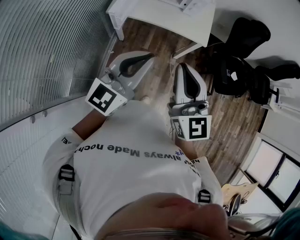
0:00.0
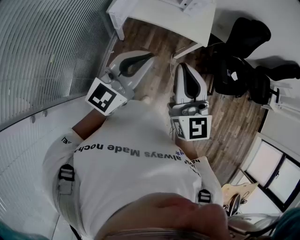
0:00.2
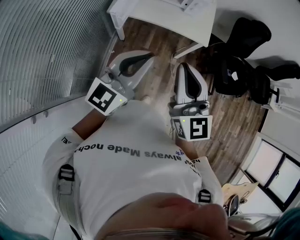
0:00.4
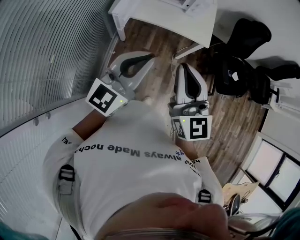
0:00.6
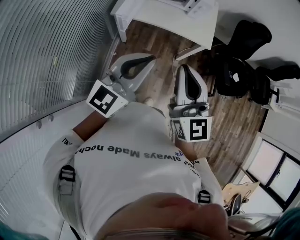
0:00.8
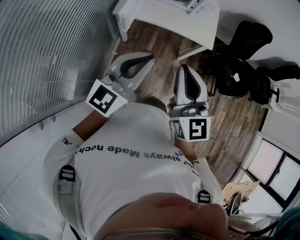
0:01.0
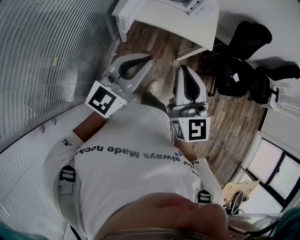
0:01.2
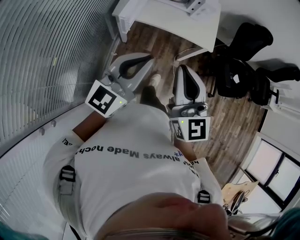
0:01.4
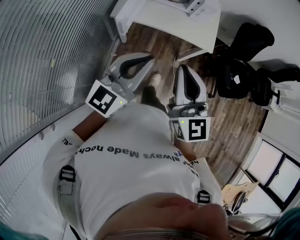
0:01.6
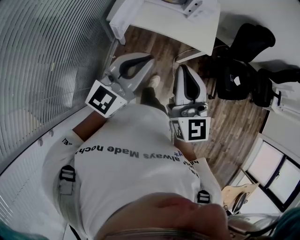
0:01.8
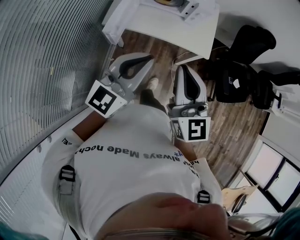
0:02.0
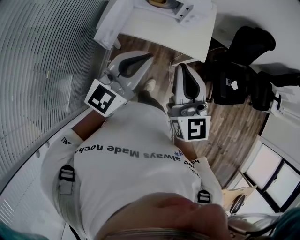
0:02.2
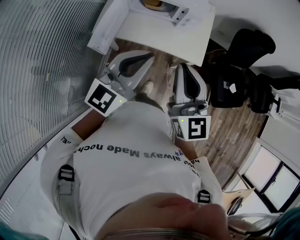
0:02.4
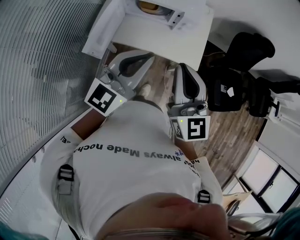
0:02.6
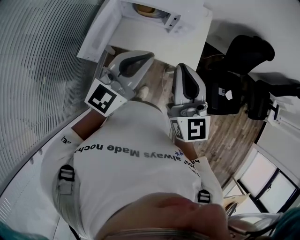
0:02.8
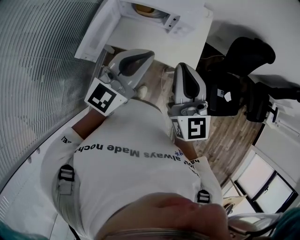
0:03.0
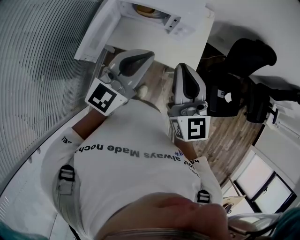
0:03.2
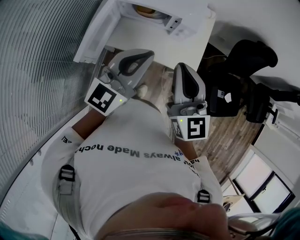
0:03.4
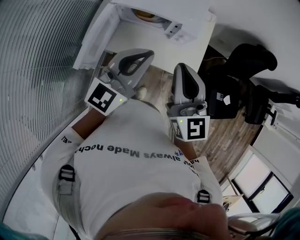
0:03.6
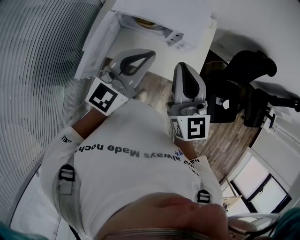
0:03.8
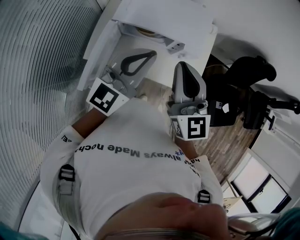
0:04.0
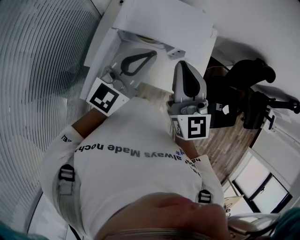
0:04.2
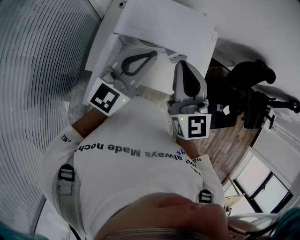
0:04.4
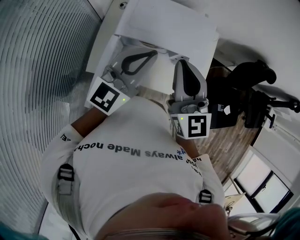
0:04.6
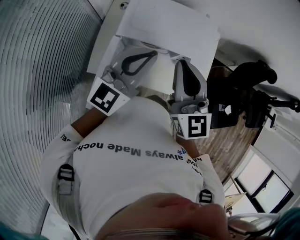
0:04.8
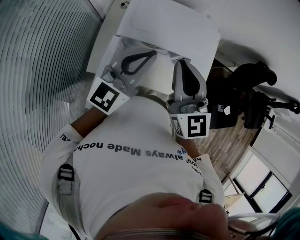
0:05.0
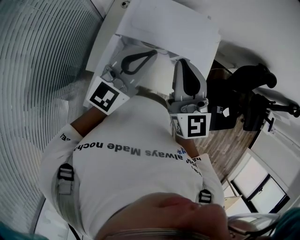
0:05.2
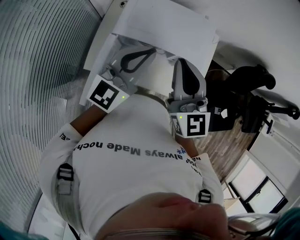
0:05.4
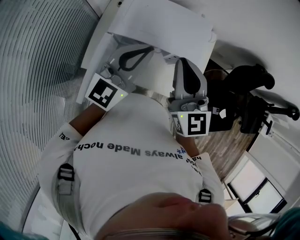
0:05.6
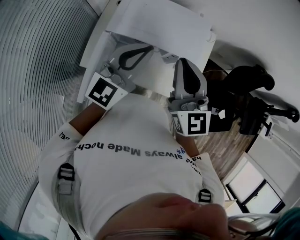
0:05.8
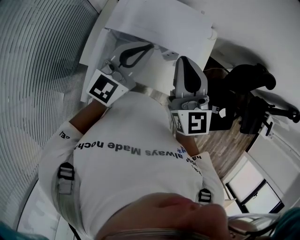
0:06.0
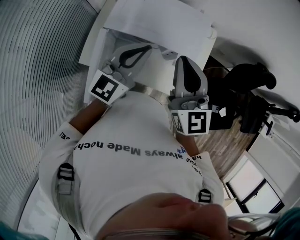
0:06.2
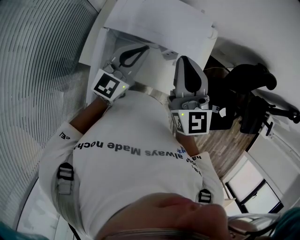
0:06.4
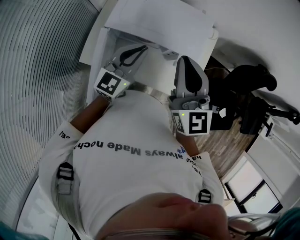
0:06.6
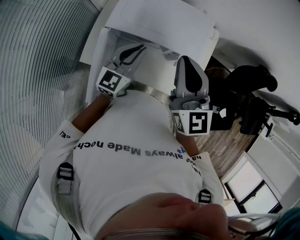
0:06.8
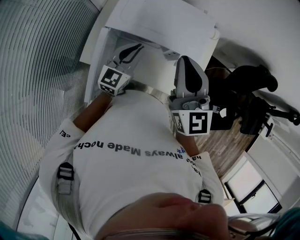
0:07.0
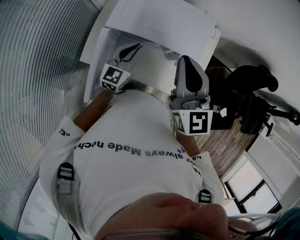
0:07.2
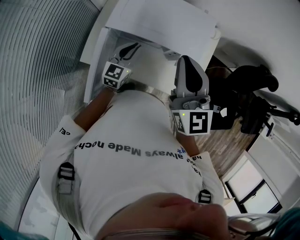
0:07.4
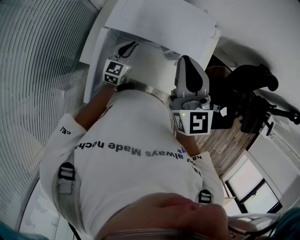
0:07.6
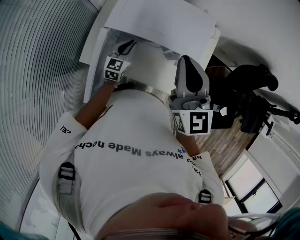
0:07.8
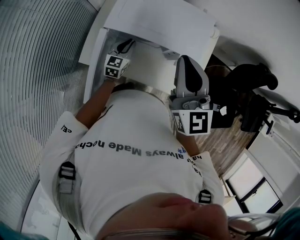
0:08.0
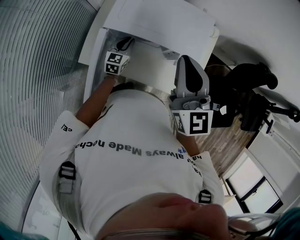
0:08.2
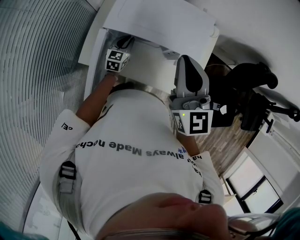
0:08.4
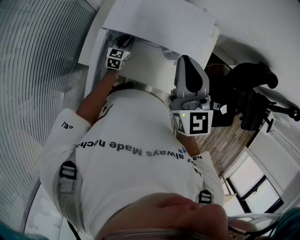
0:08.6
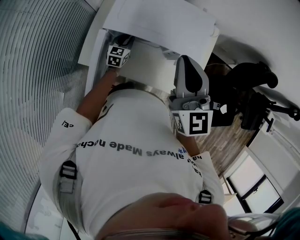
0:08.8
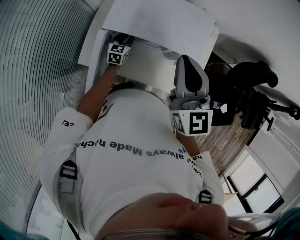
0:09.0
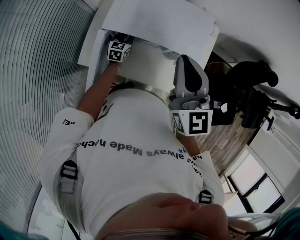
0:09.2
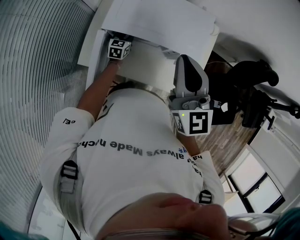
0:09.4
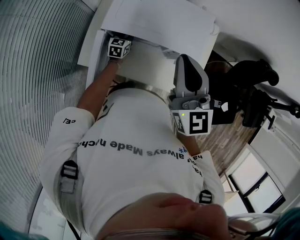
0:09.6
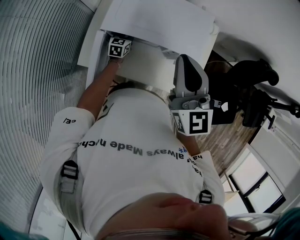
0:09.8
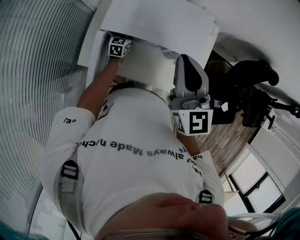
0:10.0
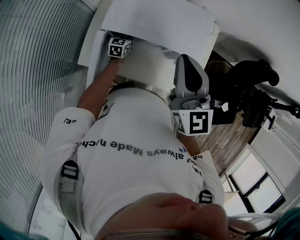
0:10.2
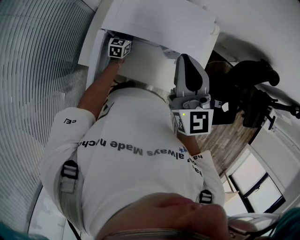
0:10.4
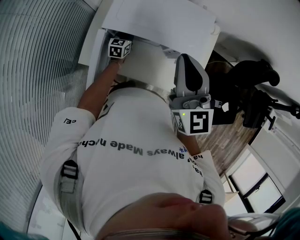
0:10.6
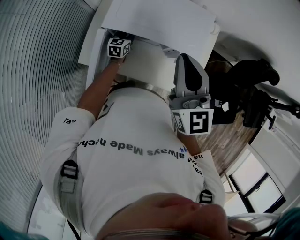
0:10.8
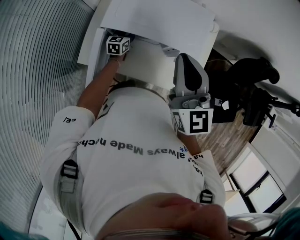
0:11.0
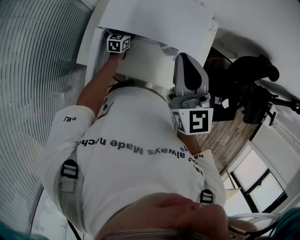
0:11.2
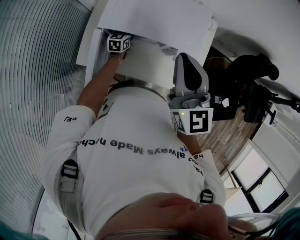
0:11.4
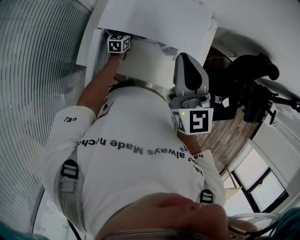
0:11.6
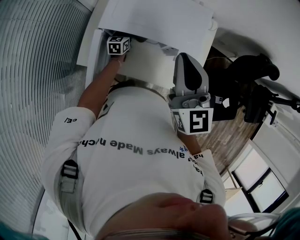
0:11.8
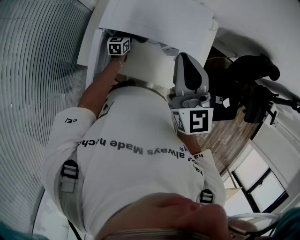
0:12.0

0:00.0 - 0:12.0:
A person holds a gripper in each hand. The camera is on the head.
0:00.0 - 0:01.6: The two grippers go roughly 5 cm to the left.
0:01.6 - 0:03.0: Both grippers move forward and to the right, approximately 30 cm.
0:03.0 - 0:04.4: The two grippers go some 25 cm forward and to the left.
0:04.4 - 0:06.0: The grippers both shift to the right by approximately 5 cm.
0:06.0 - 0:07.6: The left gripper moves downward, roughly 25 cm, and changes its angle by approximately 20 degrees.
0:07.6 - 0:09.0: The left gripper moves downward and forward, some 15 cm.
0:09.0 - 0:10.4: The grippers move only a little.
0:10.4 - 0:12.0: The left gripper opens, then closes again.

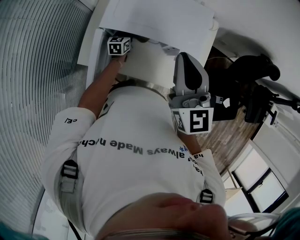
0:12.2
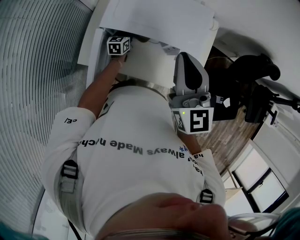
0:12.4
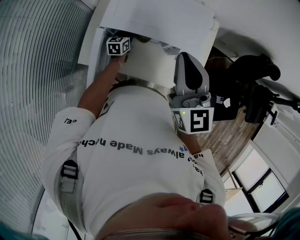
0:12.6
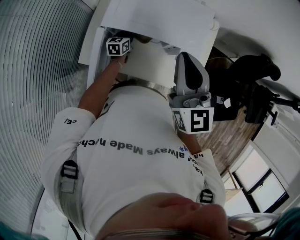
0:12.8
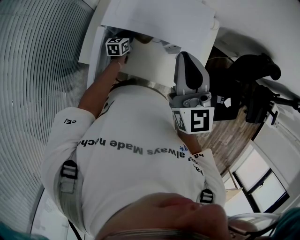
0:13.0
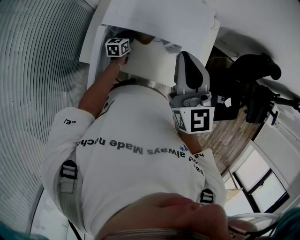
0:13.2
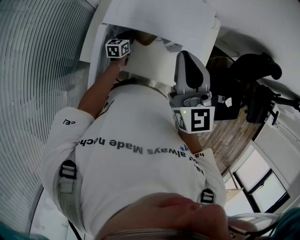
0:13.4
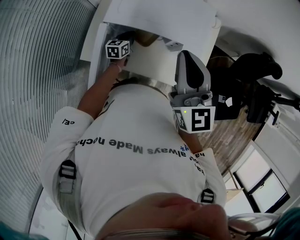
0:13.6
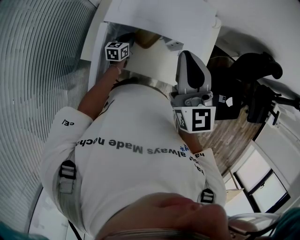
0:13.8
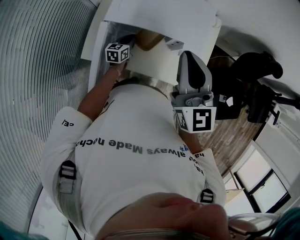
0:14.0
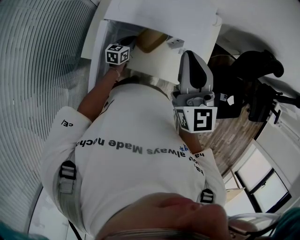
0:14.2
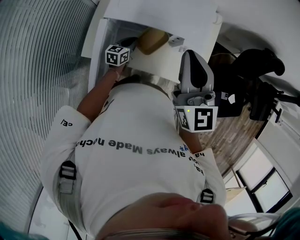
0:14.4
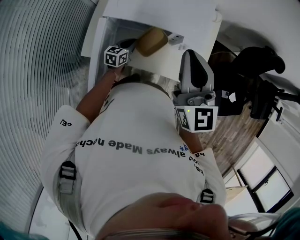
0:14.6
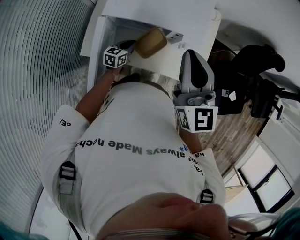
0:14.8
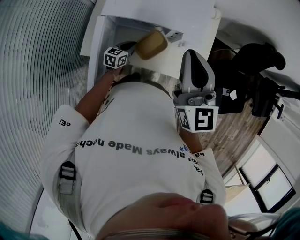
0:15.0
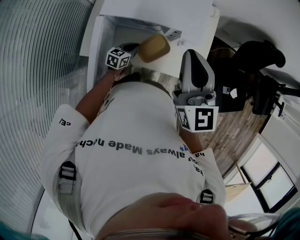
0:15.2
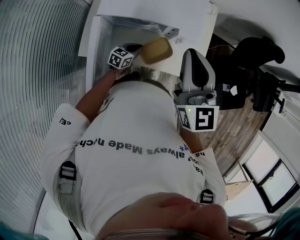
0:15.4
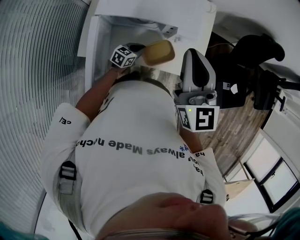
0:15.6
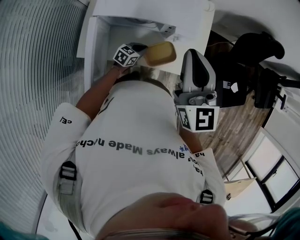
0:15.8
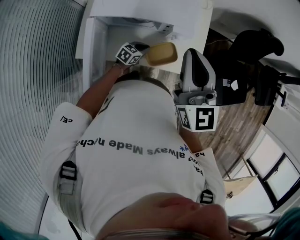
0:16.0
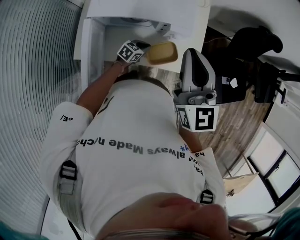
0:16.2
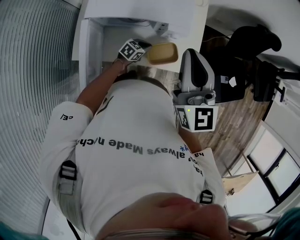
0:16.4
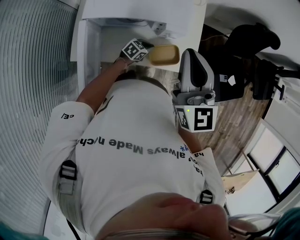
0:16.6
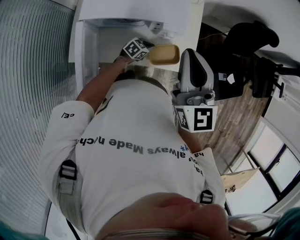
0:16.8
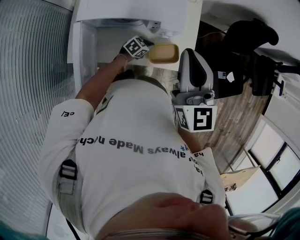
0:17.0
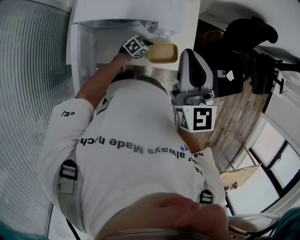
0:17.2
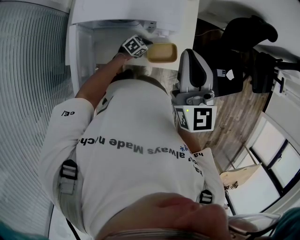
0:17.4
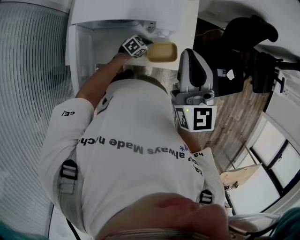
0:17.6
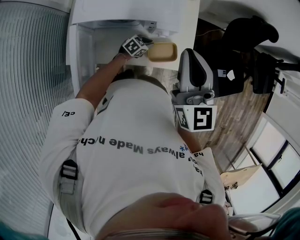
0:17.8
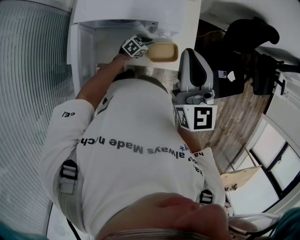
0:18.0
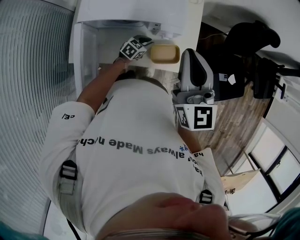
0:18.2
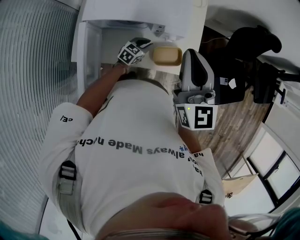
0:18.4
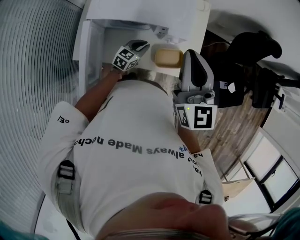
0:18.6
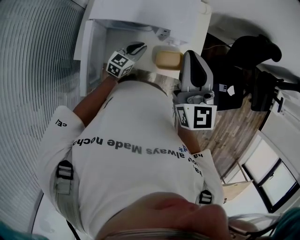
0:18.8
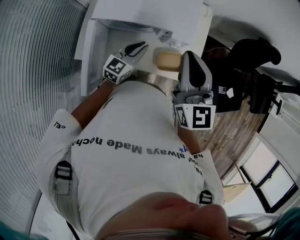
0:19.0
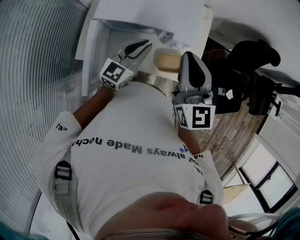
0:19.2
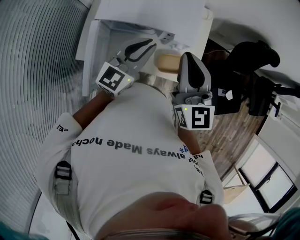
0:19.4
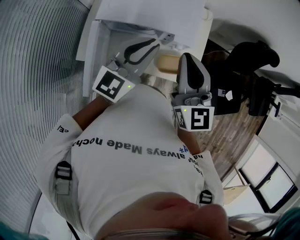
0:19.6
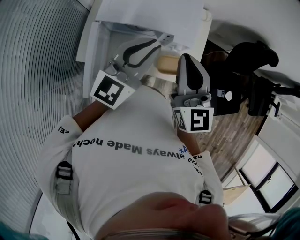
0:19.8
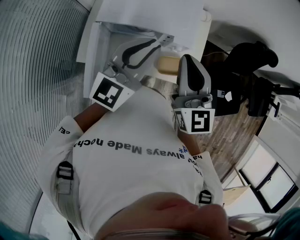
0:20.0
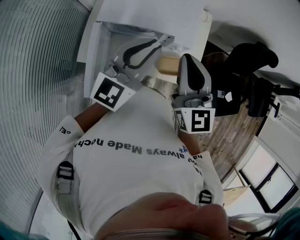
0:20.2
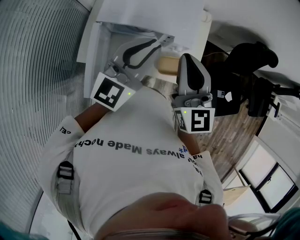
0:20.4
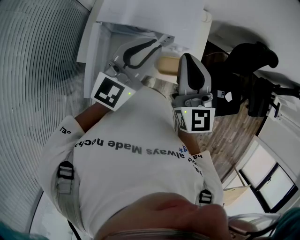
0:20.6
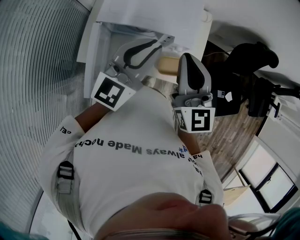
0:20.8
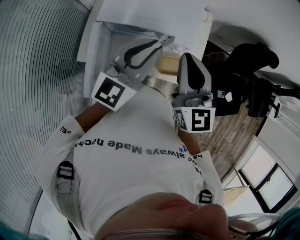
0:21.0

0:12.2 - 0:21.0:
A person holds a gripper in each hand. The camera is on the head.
0:12.2 - 0:13.6: The left gripper shifts some 5 cm backward.
0:13.6 - 0:15.2: The right gripper changes place by approximately 5 cm. Meanwhile the left gripper travels backward and to the right by approximately 15 cm, and swivels some 20 degrees.
0:15.2 - 0:16.6: The right gripper moves approximately 5 cm. Meanwhile the left gripper travels to the right by about 15 cm, and turns by about 30 degrees.
0:16.6 - 0:18.0: The grippers move only a little.
0:18.0 - 0:19.6: The left gripper heads upward, covering roughly 40 cm, and tilts its fingers about 40 degrees upward. Meanwhile the right gripper goes approximately 5 cm to the left.
0:19.6 - 0:21.0: The grippers stay close to where they were, moving slightly.

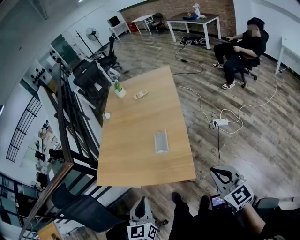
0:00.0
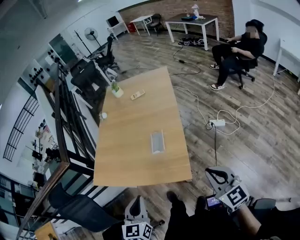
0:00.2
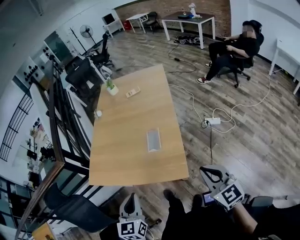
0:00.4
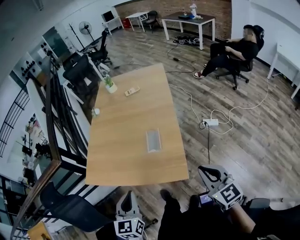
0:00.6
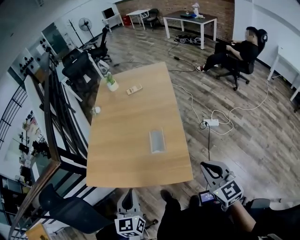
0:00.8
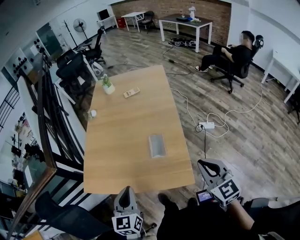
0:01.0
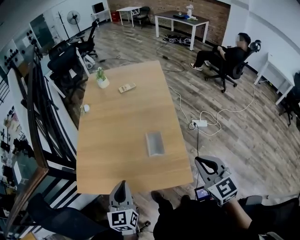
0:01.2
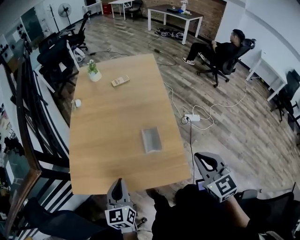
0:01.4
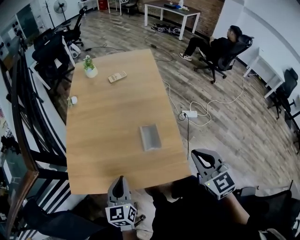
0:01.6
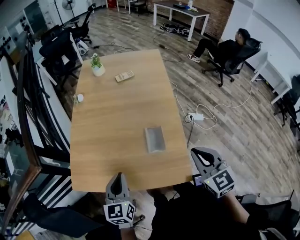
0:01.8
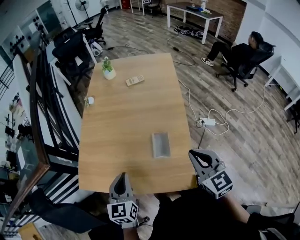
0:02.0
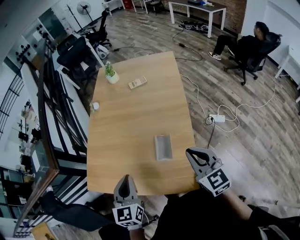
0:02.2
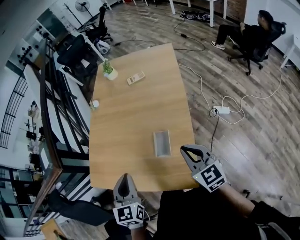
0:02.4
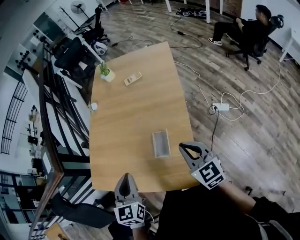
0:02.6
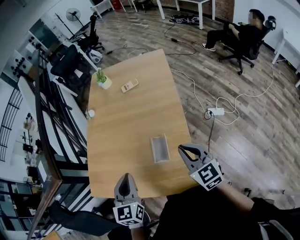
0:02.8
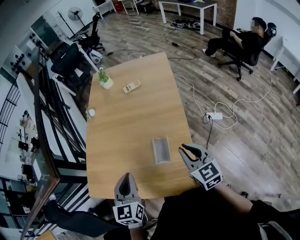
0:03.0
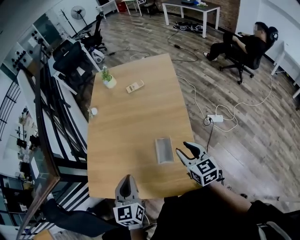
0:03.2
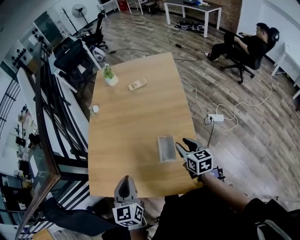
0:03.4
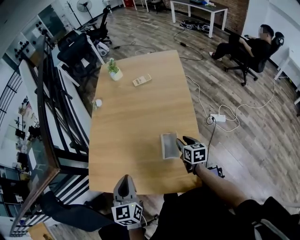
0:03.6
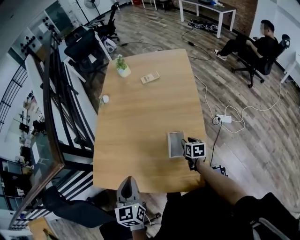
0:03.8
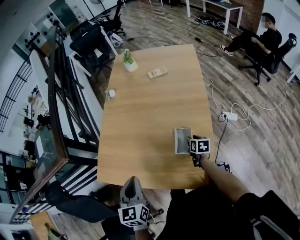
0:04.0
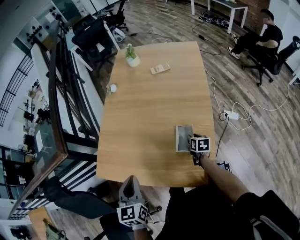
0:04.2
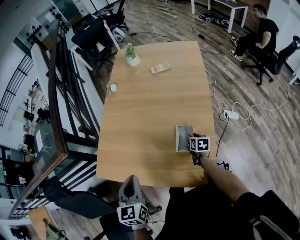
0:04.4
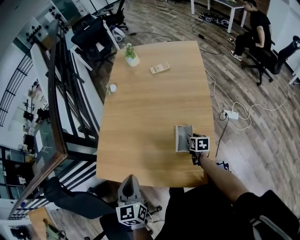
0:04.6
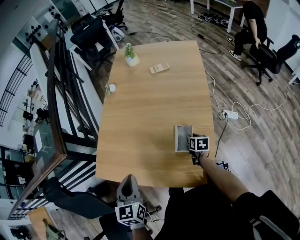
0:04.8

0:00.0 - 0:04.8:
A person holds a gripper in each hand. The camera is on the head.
0:00.0 - 0:01.6: The two grippers go roughly 20 cm forward and to the left.
0:01.6 - 0:03.2: The left gripper shifts about 10 cm forward, upward and to the right. Meanwhile the right gripper travels forward and downward by about 15 cm, swivels approximately 20 degrees, and opens its fingers.
0:03.2 - 0:04.8: The left gripper is displaced to the left by approximately 10 cm. The right gripper goes about 25 cm downward, and changes its angle by about 40 degrees.
